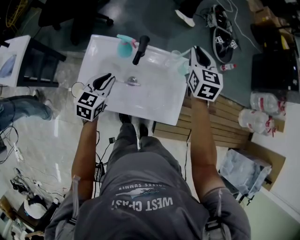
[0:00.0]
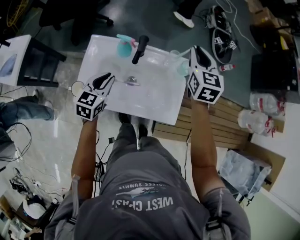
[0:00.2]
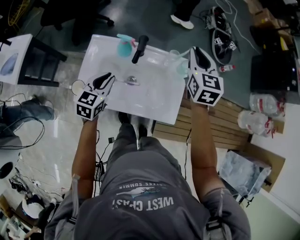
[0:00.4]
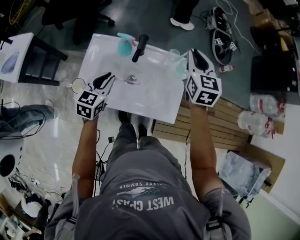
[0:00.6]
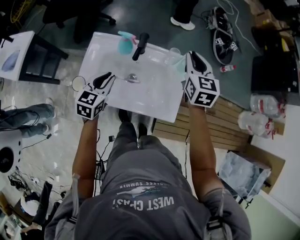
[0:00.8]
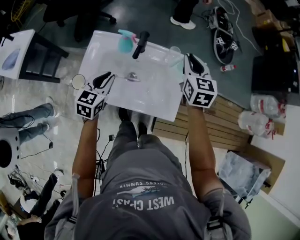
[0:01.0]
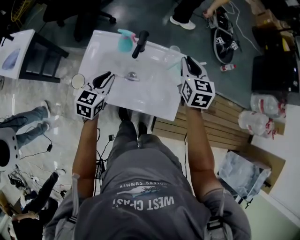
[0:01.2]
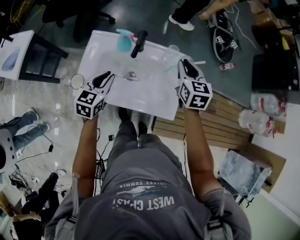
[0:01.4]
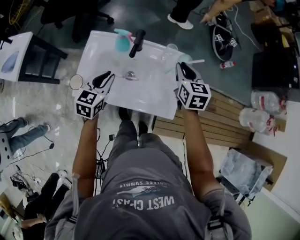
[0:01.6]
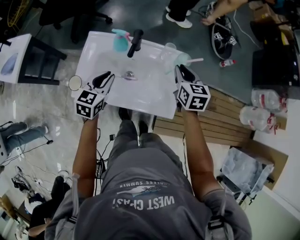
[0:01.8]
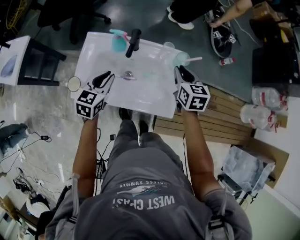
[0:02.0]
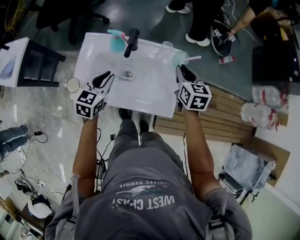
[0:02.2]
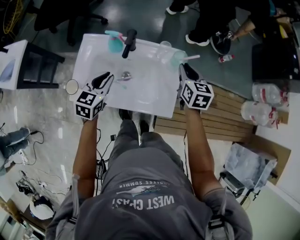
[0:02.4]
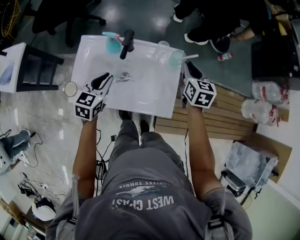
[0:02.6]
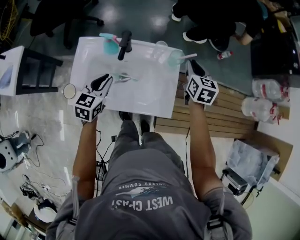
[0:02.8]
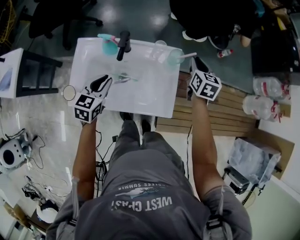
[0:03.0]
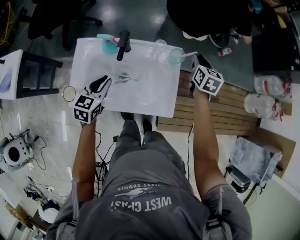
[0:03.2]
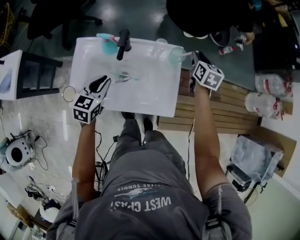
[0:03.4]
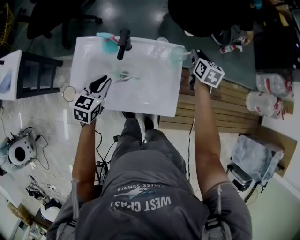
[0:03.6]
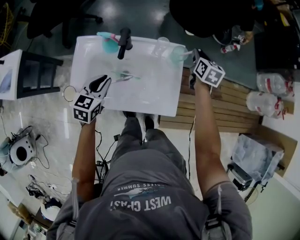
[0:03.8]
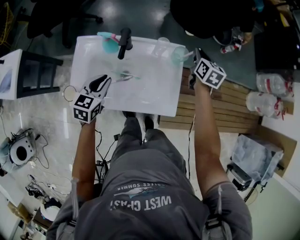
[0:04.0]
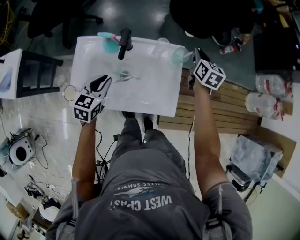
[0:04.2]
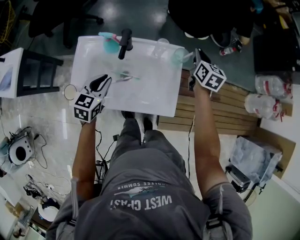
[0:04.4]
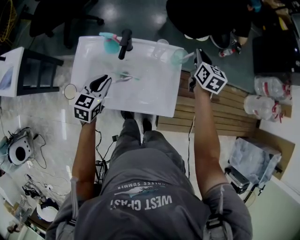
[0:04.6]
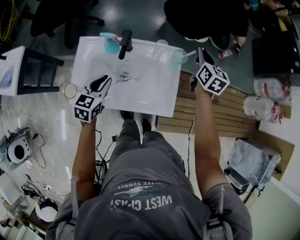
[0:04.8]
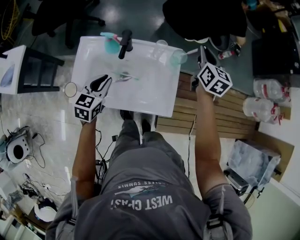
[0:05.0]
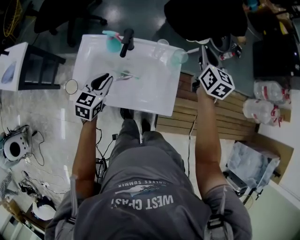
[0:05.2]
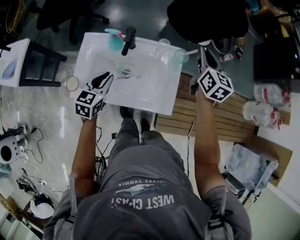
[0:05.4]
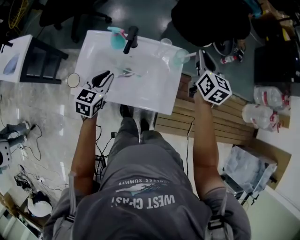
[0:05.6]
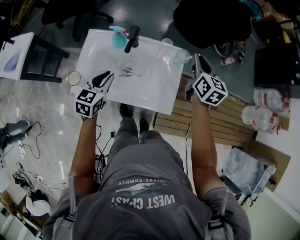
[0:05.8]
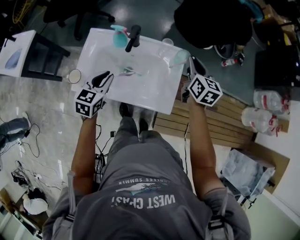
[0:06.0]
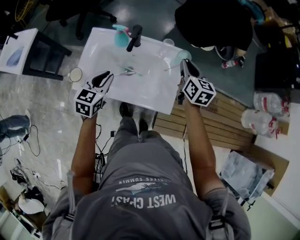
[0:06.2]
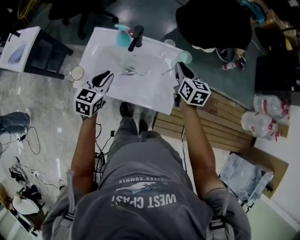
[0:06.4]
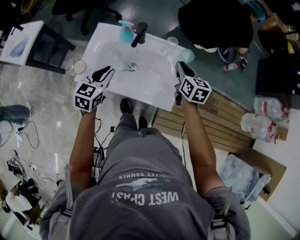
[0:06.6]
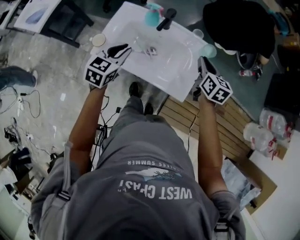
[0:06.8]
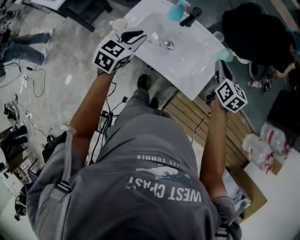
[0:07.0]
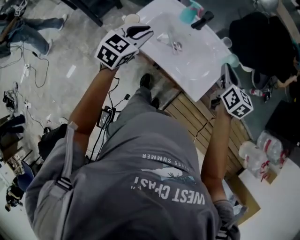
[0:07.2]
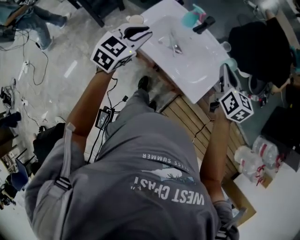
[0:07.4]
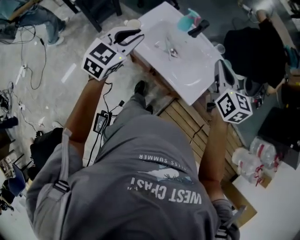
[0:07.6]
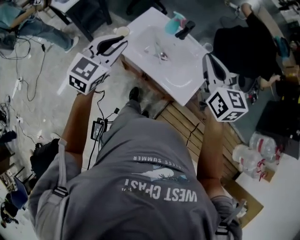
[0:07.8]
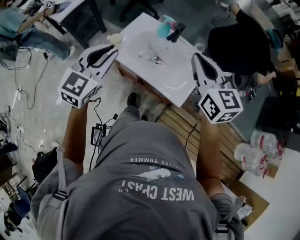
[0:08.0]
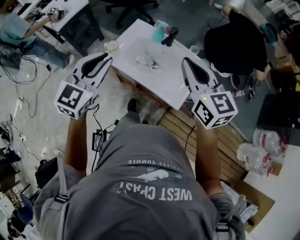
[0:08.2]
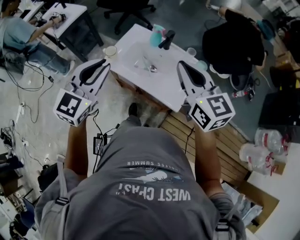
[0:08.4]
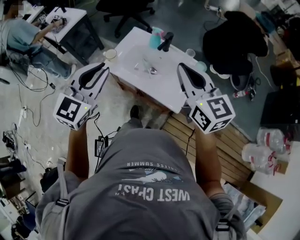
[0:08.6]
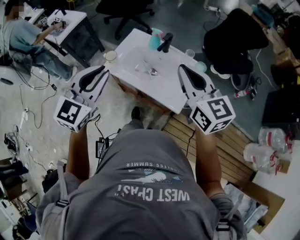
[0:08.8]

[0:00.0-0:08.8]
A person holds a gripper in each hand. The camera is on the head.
0:00.0 to 0:01.4: The right gripper travels backward by some 10 cm.
0:01.4 to 0:03.0: The right gripper heads to the right, covering about 10 cm.
0:03.0 to 0:04.4: The grippers move only a little.
0:04.4 to 0:05.8: The right gripper goes roughly 10 cm upward and backward.
0:05.8 to 0:07.4: The right gripper goes some 15 cm to the left and backward, and turns by approximately 30 degrees. The left gripper shifts roughly 15 cm upward, backward and to the left.
0:07.4 to 0:08.8: Both grippers travel together upward and backward, about 20 cm. The right gripper turns by roughly 20 degrees.

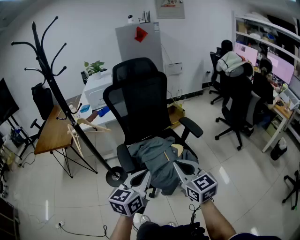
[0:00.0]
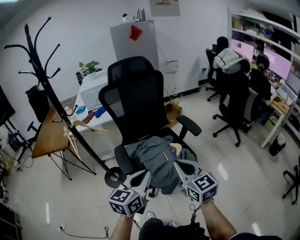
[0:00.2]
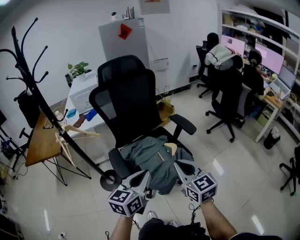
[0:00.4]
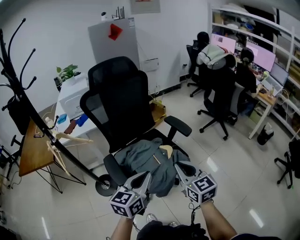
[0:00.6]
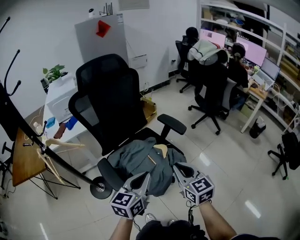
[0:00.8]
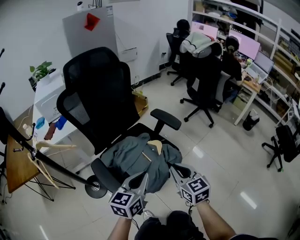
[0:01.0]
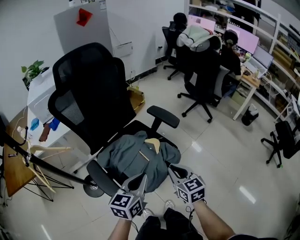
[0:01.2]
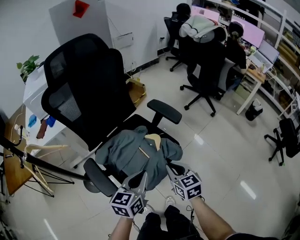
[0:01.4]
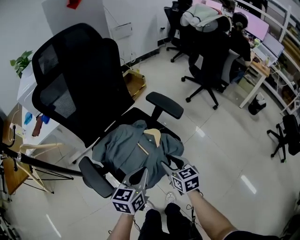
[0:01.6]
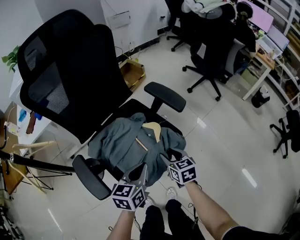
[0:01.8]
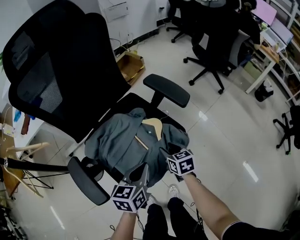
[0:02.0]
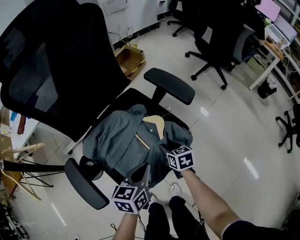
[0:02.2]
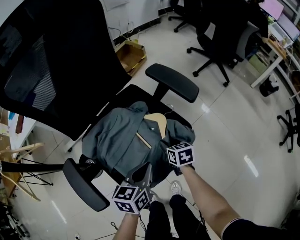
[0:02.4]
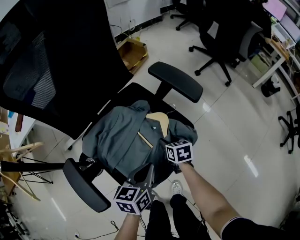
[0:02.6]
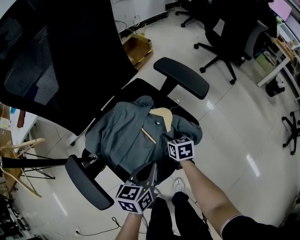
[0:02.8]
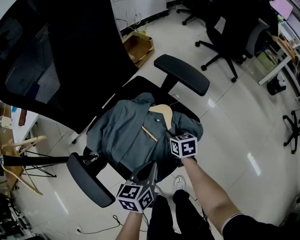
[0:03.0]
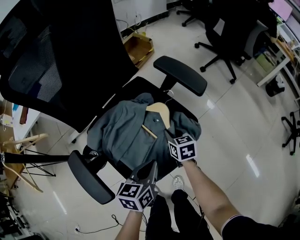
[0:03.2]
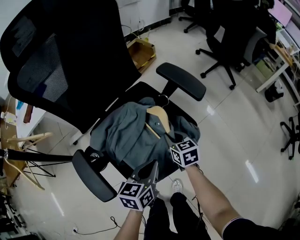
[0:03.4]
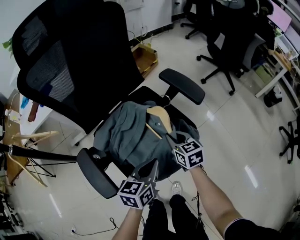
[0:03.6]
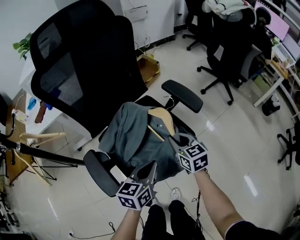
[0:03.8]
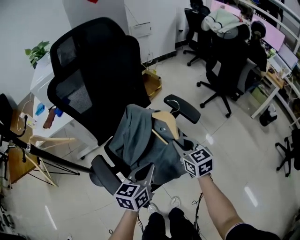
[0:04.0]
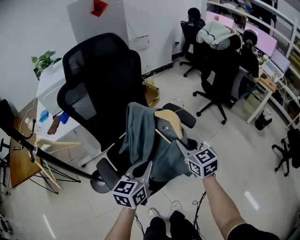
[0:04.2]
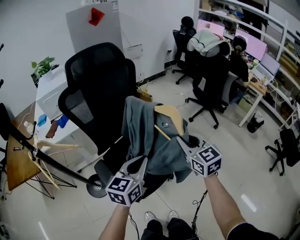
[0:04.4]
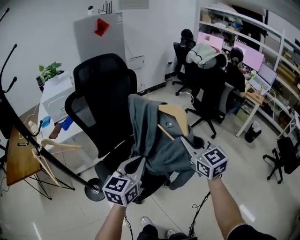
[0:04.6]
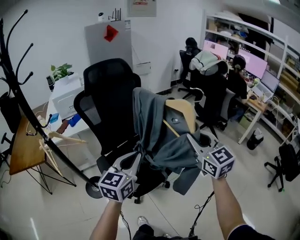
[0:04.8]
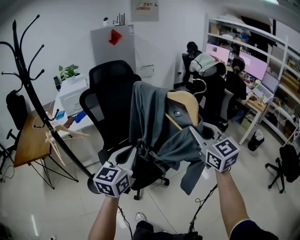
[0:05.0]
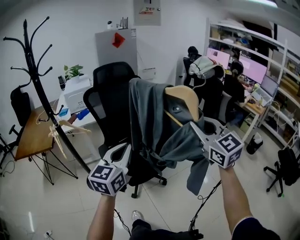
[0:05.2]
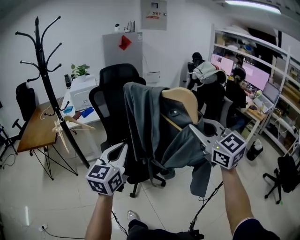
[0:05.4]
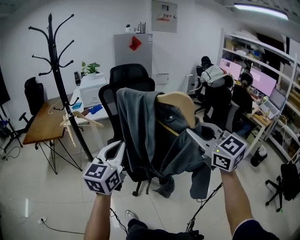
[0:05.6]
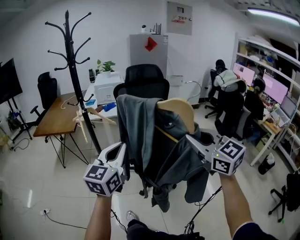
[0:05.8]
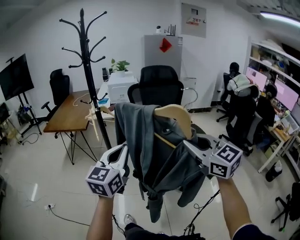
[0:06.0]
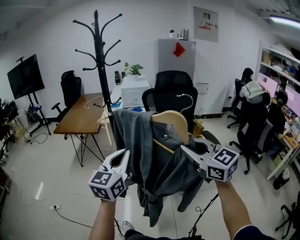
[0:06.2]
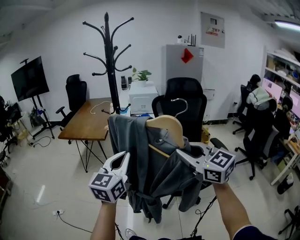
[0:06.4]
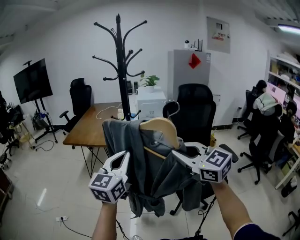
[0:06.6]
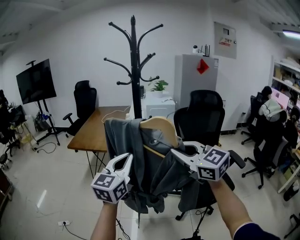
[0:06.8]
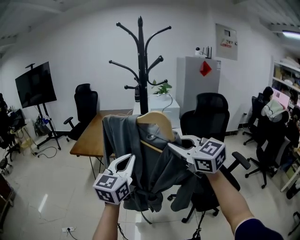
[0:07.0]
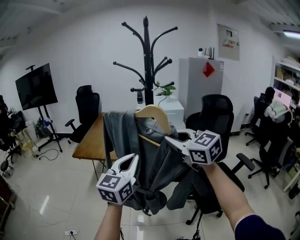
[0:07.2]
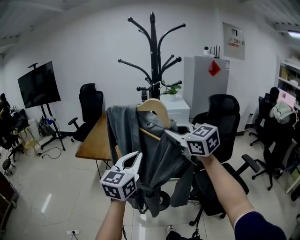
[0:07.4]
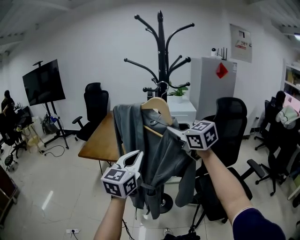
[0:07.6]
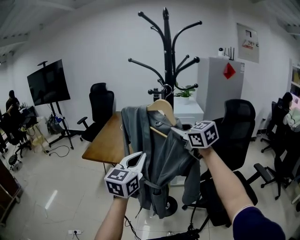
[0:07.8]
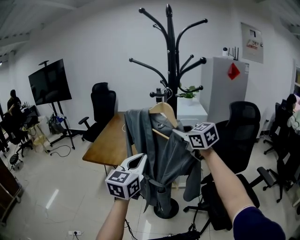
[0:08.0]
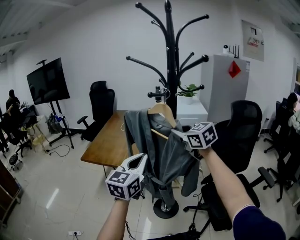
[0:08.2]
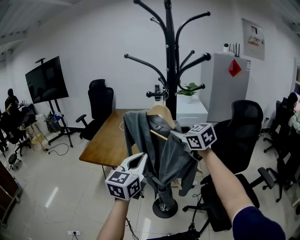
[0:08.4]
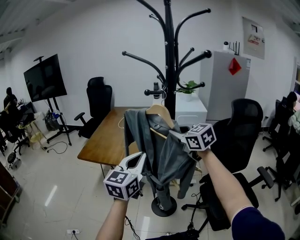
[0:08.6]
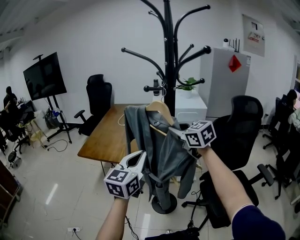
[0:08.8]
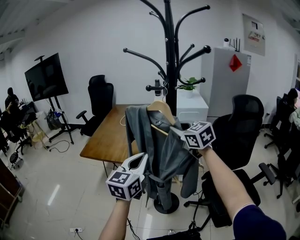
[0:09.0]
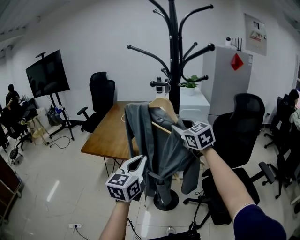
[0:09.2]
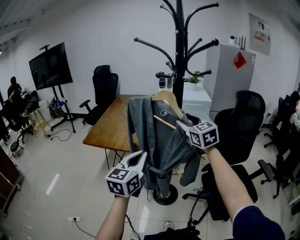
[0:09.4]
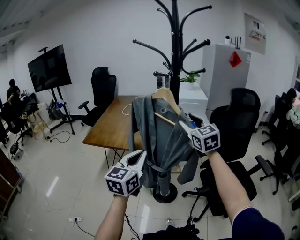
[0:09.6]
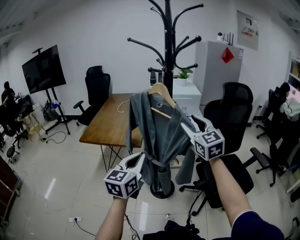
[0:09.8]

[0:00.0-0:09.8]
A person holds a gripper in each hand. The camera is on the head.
0:00.0 to 0:01.4: The right gripper travels downward and forward by approximately 20 cm, and rotates roughly 30 degrees; the left gripper is displaced forward and downward by some 20 cm, and changes its angle by roughly 20 degrees.
0:01.4 to 0:02.8: The right gripper heads downward and forward, covering roughly 30 cm, swivels some 20 degrees, and opens up; the left gripper goes roughly 15 cm downward.
0:02.8 to 0:04.2: The right gripper moves upward, approximately 35 cm, swivels roughly 40 degrees, and closes its fingers; the left gripper is displaced upward by approximately 20 cm.
0:04.2 to 0:05.6: The two grippers go roughly 35 cm backward and upward. The left gripper changes its angle by approximately 30 degrees. The right gripper swivels roughly 30 degrees.
0:05.6 to 0:07.0: Both grippers are carried to the left and forward, about 50 cm. The right gripper rotates approximately 30 degrees.
0:07.0 to 0:08.4: The left gripper heads forward, covering roughly 20 cm. The right gripper shifts approximately 30 cm forward.
0:08.4 to 0:09.8: The right gripper shifts some 15 cm backward, turns by about 30 degrees, and opens its fingers. Meanwhile the left gripper moves backward and downward, approximately 15 cm.

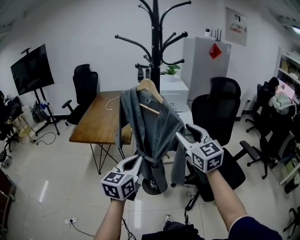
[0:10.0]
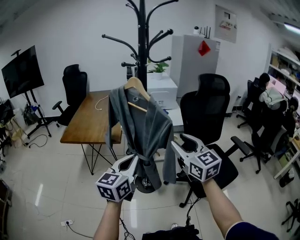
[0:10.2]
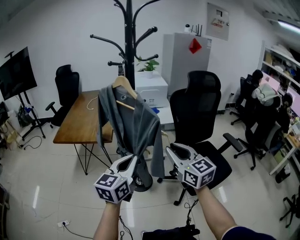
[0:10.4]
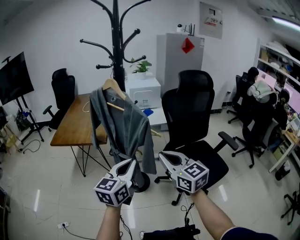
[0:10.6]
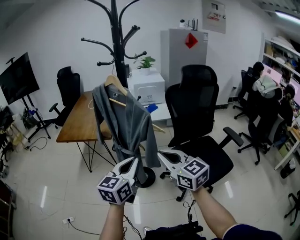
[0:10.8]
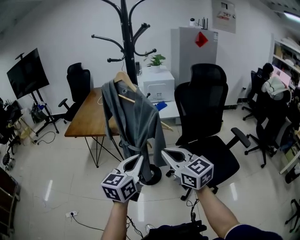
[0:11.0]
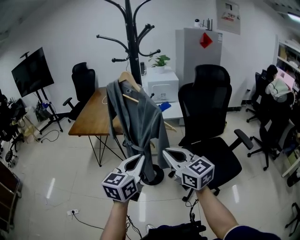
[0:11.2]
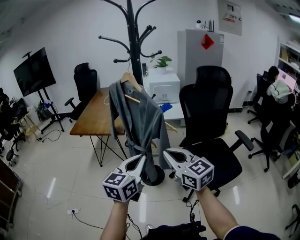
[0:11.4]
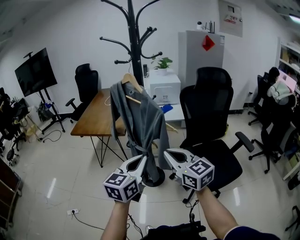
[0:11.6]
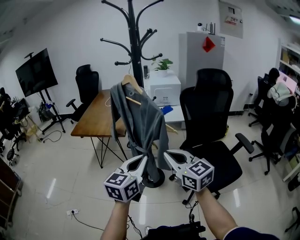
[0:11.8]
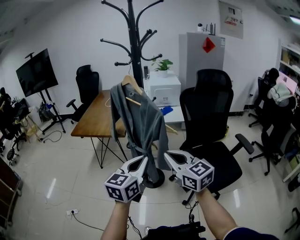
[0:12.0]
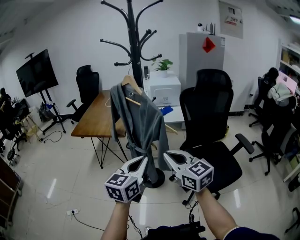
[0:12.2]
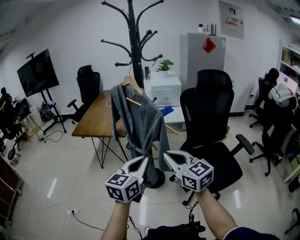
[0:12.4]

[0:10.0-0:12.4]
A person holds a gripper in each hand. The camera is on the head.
0:10.0 to 0:11.2: The right gripper goes some 15 cm backward and downward, turns by approximately 20 degrees, and closes. Meanwhile the left gripper shifts approximately 15 cm to the right and backward.
0:11.2 to 0:12.4: The grippers make only small movements.

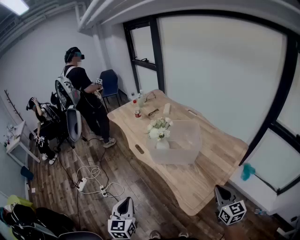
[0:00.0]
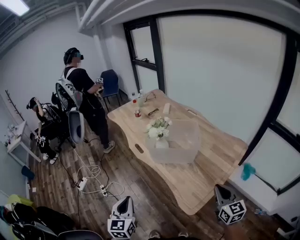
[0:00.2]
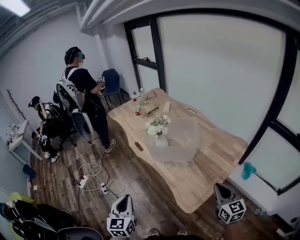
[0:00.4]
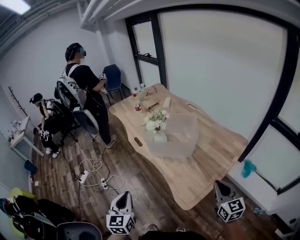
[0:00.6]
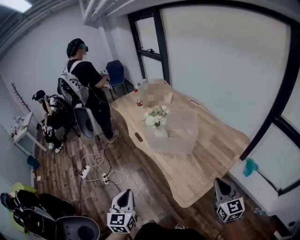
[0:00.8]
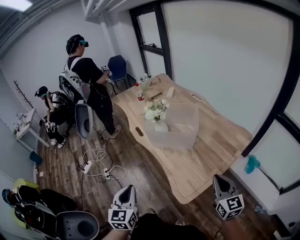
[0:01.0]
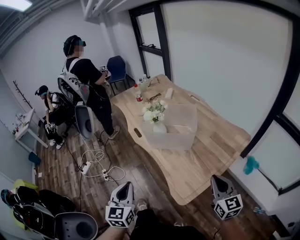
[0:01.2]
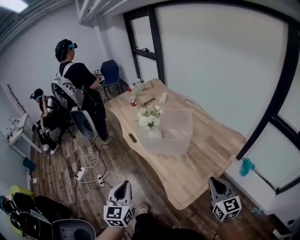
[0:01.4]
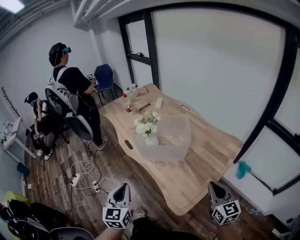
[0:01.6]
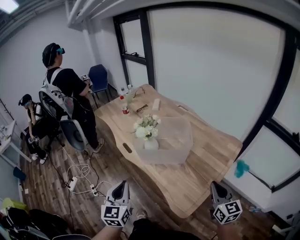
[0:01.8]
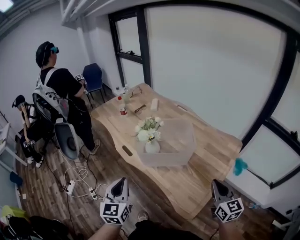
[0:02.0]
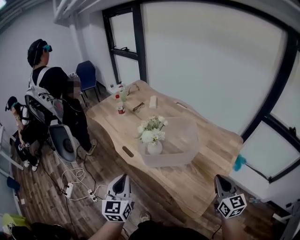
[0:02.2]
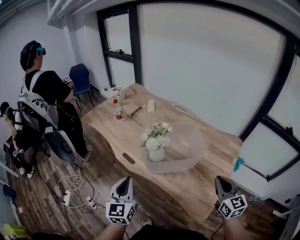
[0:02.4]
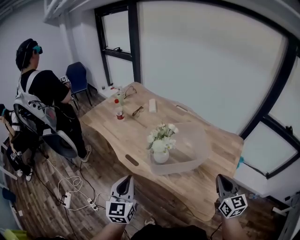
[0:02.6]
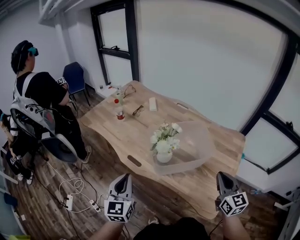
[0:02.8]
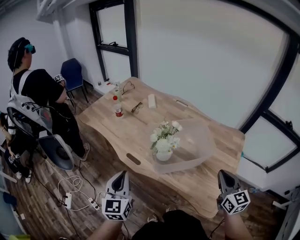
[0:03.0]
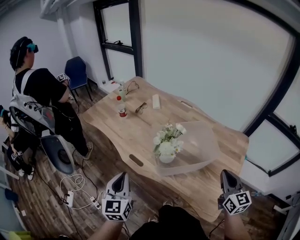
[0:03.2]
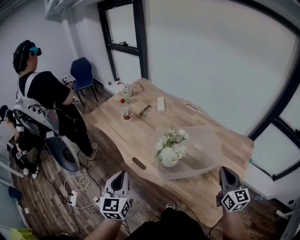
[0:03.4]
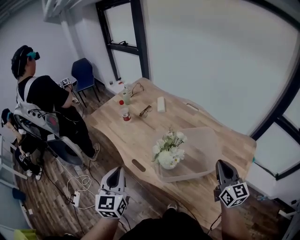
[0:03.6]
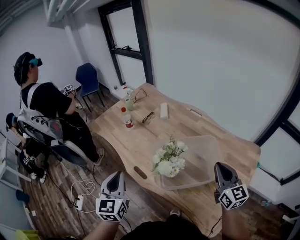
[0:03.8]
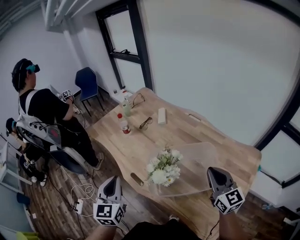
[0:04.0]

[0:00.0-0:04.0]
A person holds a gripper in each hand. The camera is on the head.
0:00.0 to 0:01.4: The left gripper goes roughly 10 cm to the right.
0:01.4 to 0:02.6: The left gripper shifts approximately 30 cm forward and to the left; the right gripper moves forward and to the left, approximately 20 cm, and swivels approximately 20 degrees.
0:02.6 to 0:04.0: The left gripper moves forward, some 15 cm, while the right gripper goes approximately 20 cm forward.
